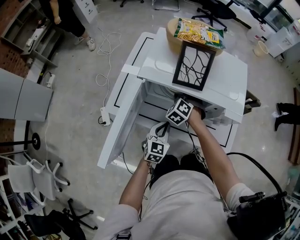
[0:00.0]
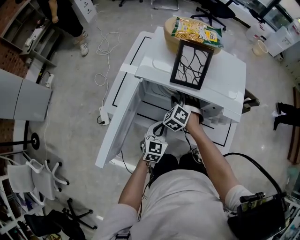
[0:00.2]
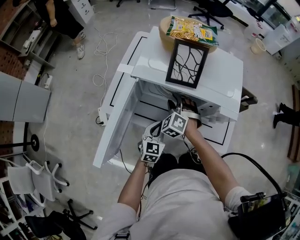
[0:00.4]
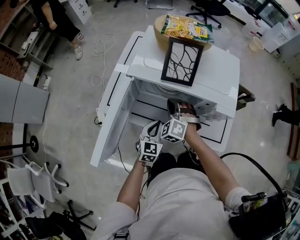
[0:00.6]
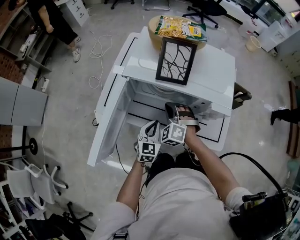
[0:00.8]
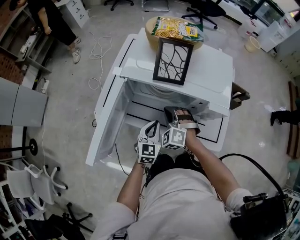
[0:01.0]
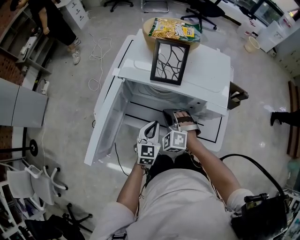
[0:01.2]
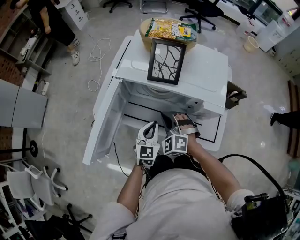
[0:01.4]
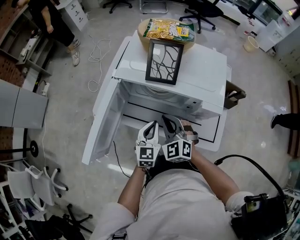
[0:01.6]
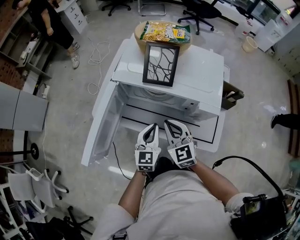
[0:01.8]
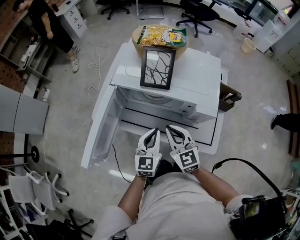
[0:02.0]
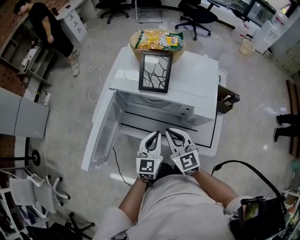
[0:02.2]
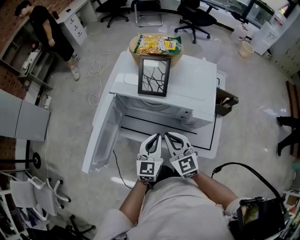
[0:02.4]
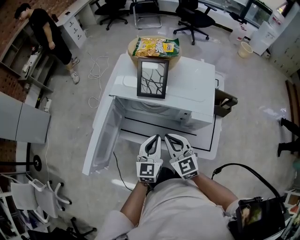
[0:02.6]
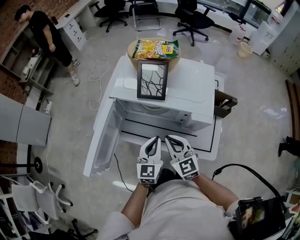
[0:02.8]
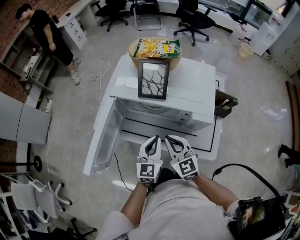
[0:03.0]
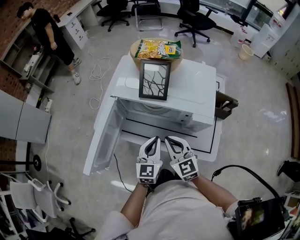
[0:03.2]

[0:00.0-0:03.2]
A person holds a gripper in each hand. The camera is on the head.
0:00.0 to 0:01.6: The left gripper moves upward, roughly 5 cm.
0:01.6 to 0:03.2: The left gripper travels upward by about 5 cm.

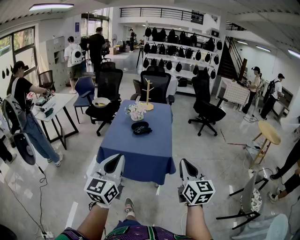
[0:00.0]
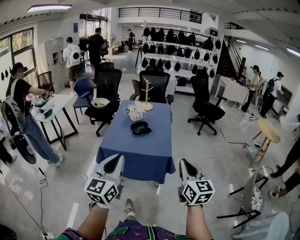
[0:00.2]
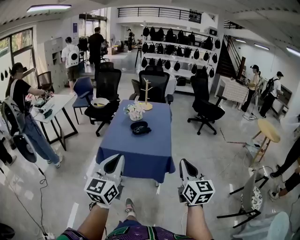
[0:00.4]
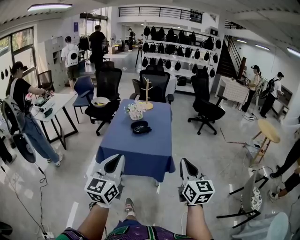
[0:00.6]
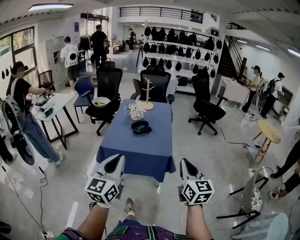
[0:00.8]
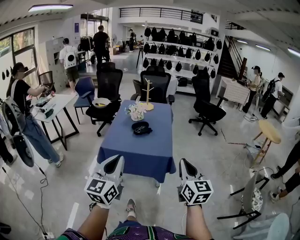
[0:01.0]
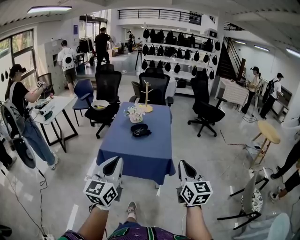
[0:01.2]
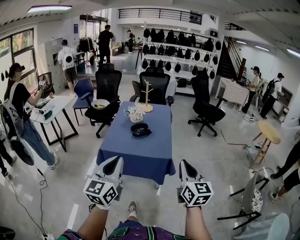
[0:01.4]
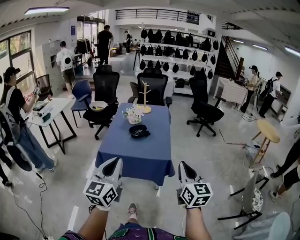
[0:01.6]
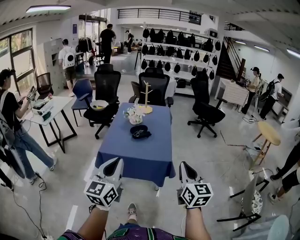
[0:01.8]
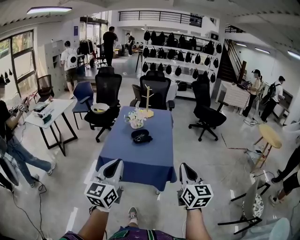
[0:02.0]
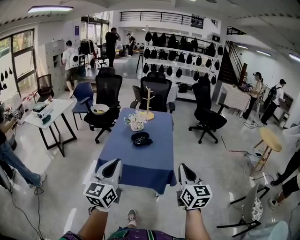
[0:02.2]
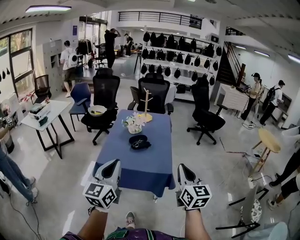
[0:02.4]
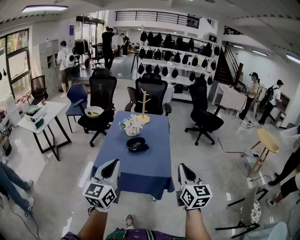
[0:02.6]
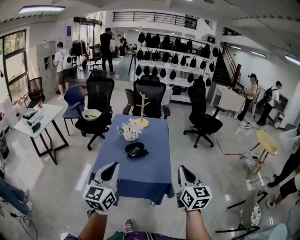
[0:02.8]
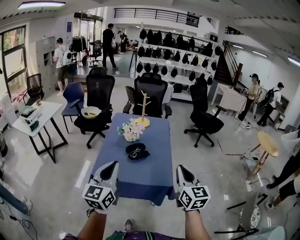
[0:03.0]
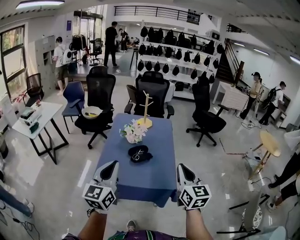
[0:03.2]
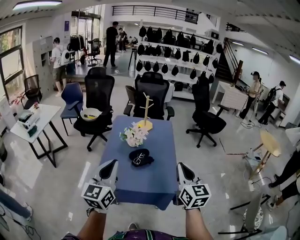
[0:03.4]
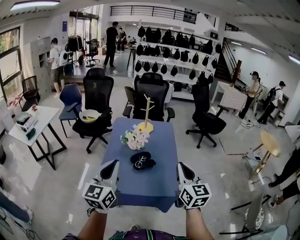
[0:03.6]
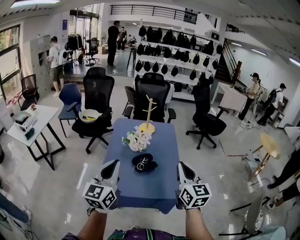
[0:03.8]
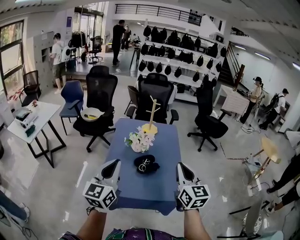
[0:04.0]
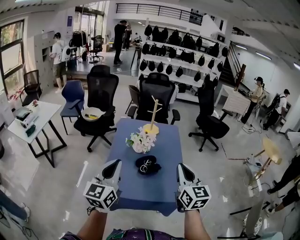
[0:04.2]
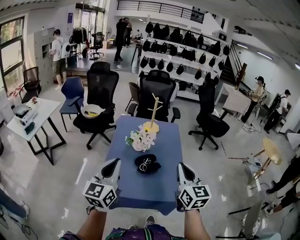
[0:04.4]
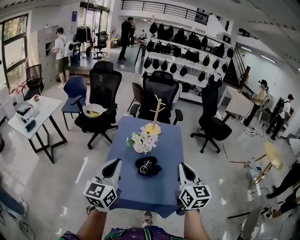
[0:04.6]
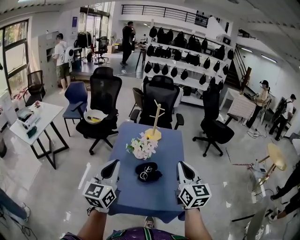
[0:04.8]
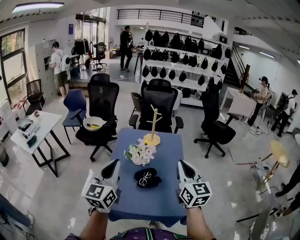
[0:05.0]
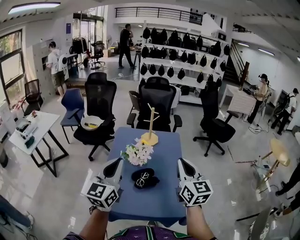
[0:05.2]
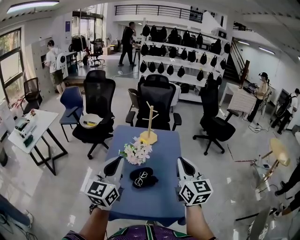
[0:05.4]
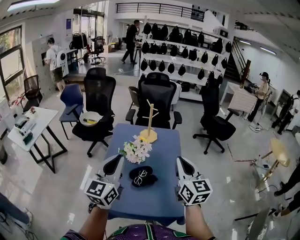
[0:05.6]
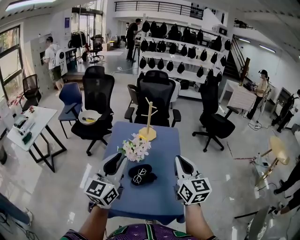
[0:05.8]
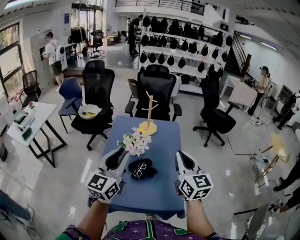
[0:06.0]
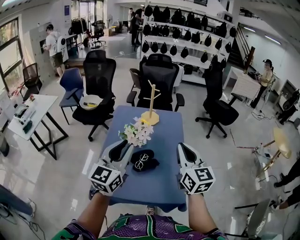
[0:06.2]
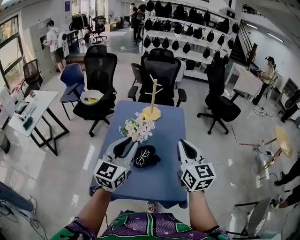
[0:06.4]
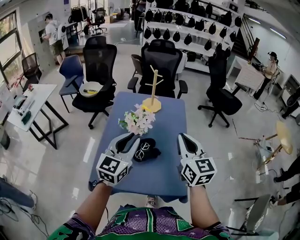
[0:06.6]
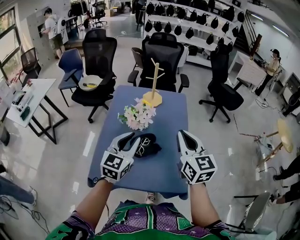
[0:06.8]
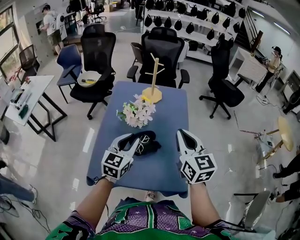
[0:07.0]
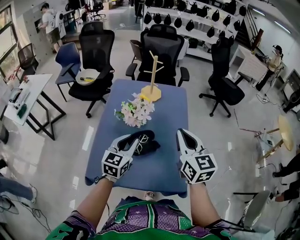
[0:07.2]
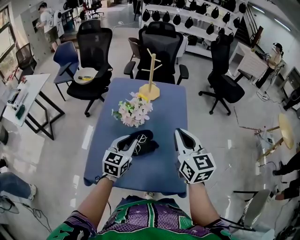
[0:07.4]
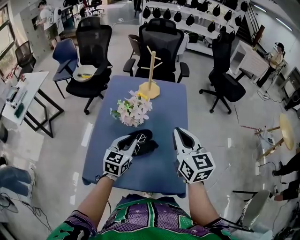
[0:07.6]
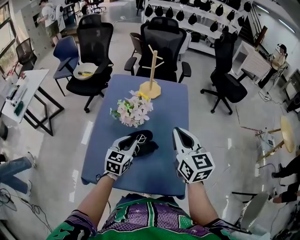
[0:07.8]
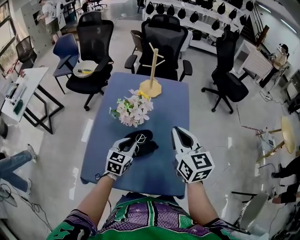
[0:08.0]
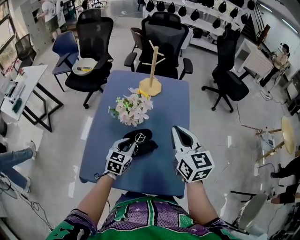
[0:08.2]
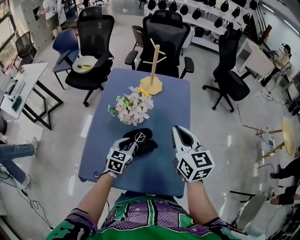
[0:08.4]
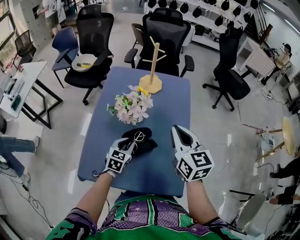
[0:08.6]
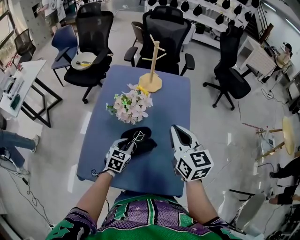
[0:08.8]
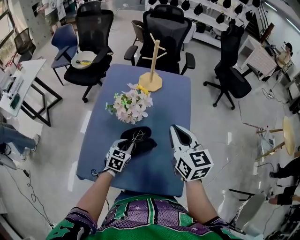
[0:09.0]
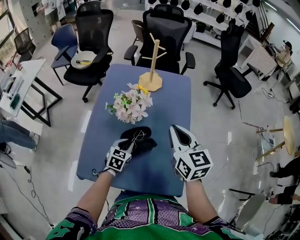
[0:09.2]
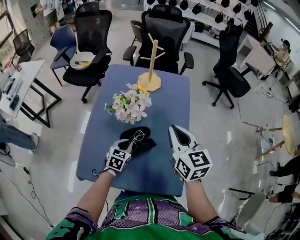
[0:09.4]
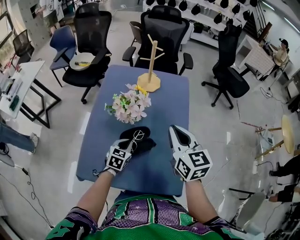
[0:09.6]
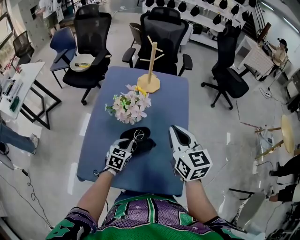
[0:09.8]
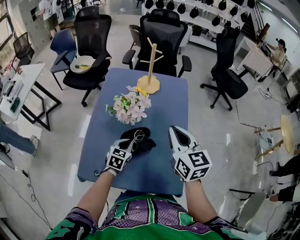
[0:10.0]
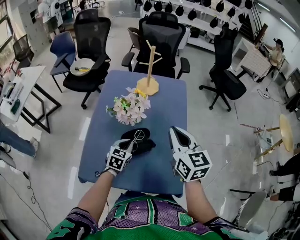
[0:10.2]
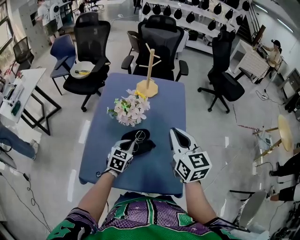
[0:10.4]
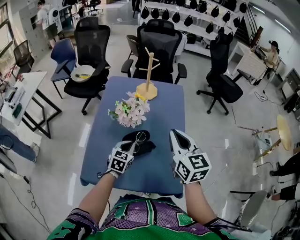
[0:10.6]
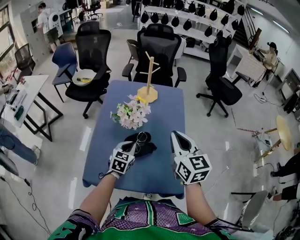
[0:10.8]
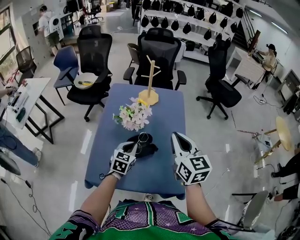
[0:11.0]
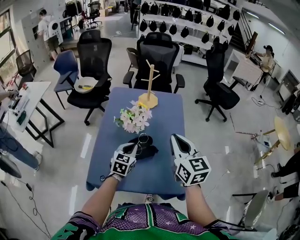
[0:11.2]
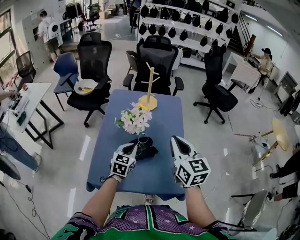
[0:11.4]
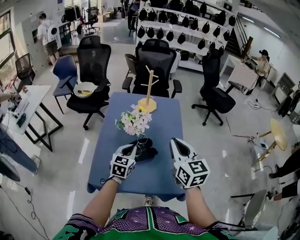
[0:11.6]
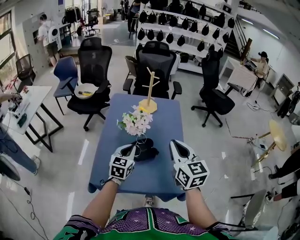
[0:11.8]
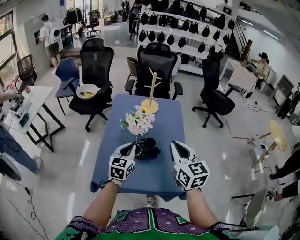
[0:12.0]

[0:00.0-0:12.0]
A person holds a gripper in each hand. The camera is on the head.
0:00.0 to 0:01.6: There are only small adjustments of the grippers.
0:01.6 to 0:03.0: The two grippers go approximately 20 cm forward.
0:03.0 to 0:04.4: The two grippers go about 20 cm forward and to the left.
0:04.4 to 0:06.0: The right gripper shifts approximately 10 cm forward, while the left gripper is displaced forward and to the right by roughly 15 cm.
0:06.0 to 0:07.6: The left gripper shifts some 25 cm downward, and swivels some 30 degrees. Meanwhile the right gripper heads downward and forward, covering some 10 cm.
0:07.6 to 0:09.0: The left gripper travels downward by some 15 cm. Meanwhile the right gripper shifts by roughly 5 cm.
0:09.0 to 0:10.4: The left gripper goes roughly 5 cm upward.
0:10.4 to 0:12.0: The left gripper goes roughly 15 cm upward and backward, while the right gripper heads backward and upward, covering roughly 10 cm.

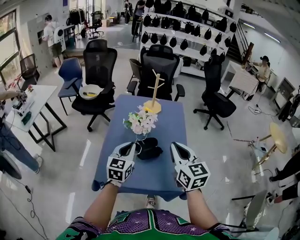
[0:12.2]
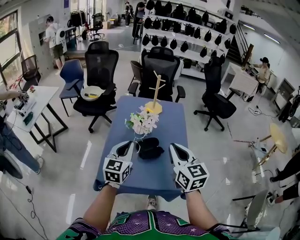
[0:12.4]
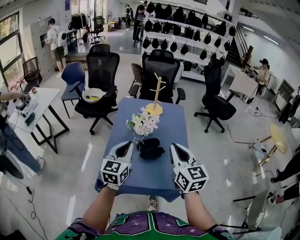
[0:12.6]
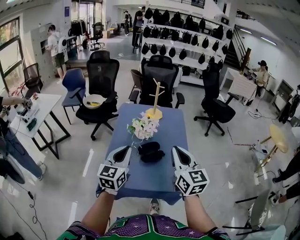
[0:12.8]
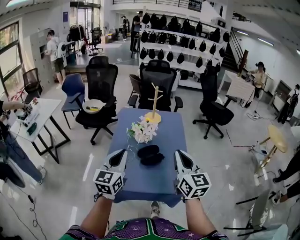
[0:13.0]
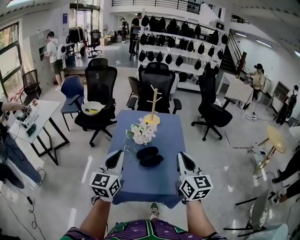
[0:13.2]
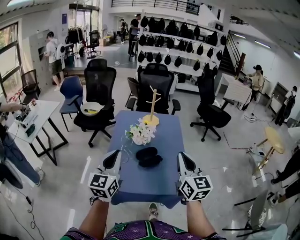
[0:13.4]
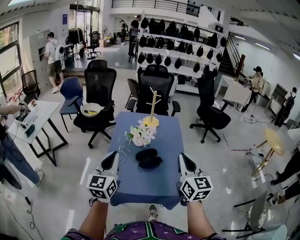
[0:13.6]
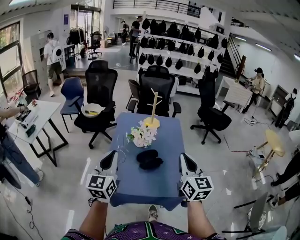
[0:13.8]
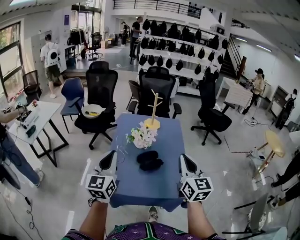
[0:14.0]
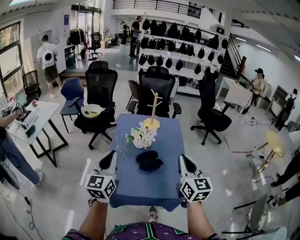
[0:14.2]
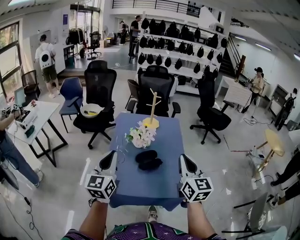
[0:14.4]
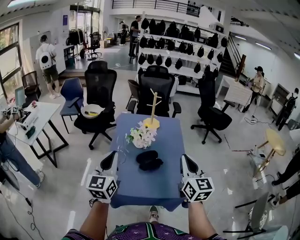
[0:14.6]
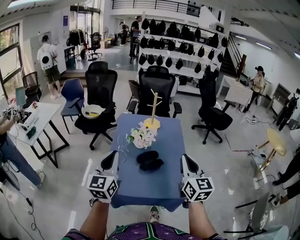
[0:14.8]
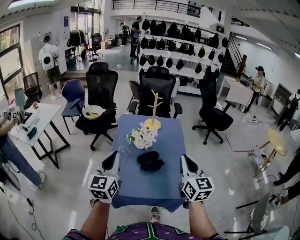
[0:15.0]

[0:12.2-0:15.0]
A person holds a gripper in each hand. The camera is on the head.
0:12.2 to 0:13.6: The right gripper moves backward, approximately 5 cm. The left gripper shifts some 20 cm upward, backward and to the left.
0:13.6 to 0:15.0: The grippers move only a little.

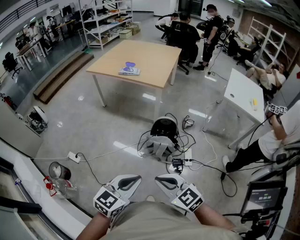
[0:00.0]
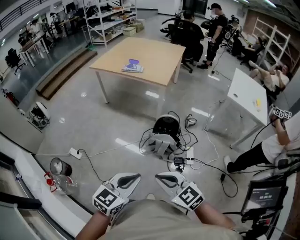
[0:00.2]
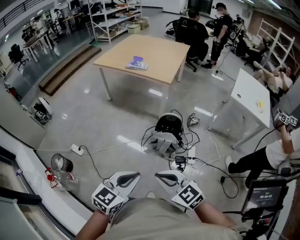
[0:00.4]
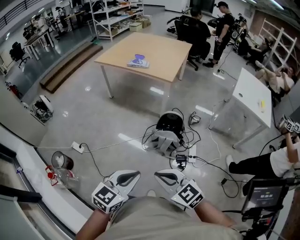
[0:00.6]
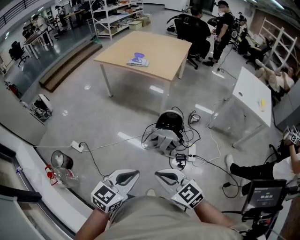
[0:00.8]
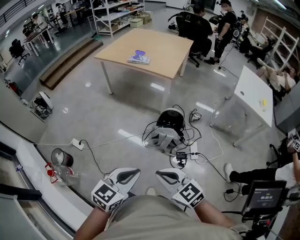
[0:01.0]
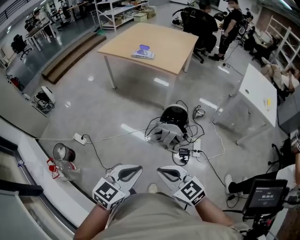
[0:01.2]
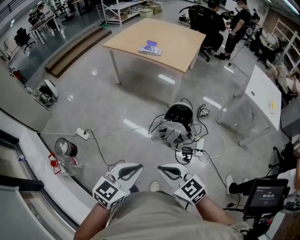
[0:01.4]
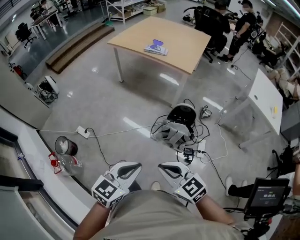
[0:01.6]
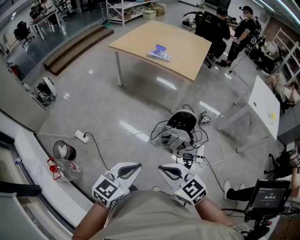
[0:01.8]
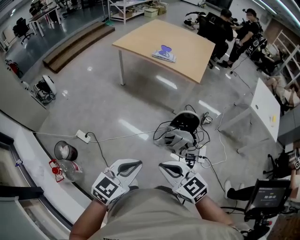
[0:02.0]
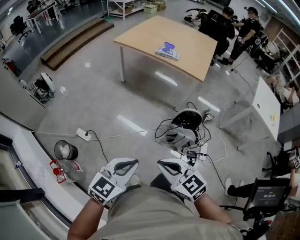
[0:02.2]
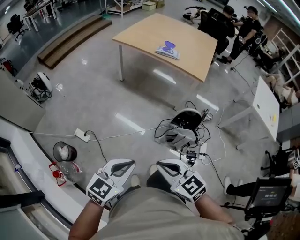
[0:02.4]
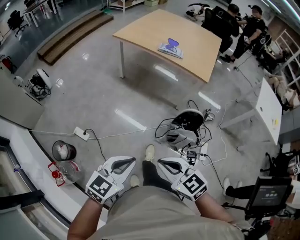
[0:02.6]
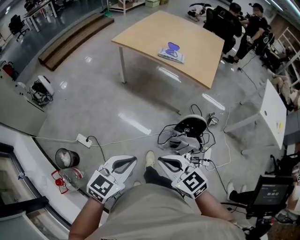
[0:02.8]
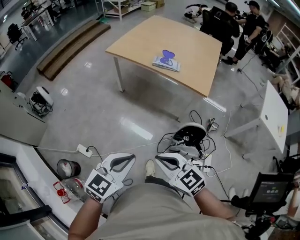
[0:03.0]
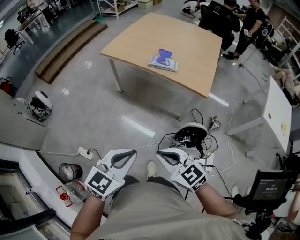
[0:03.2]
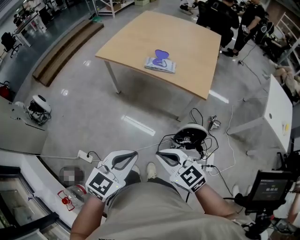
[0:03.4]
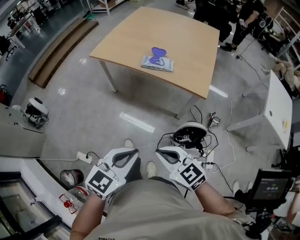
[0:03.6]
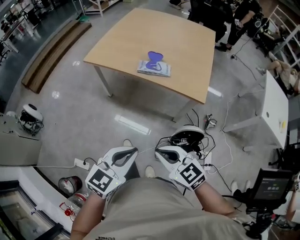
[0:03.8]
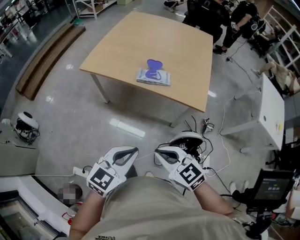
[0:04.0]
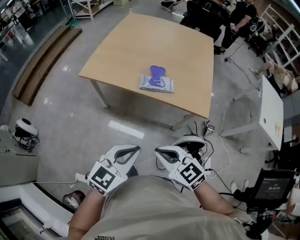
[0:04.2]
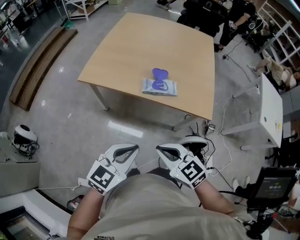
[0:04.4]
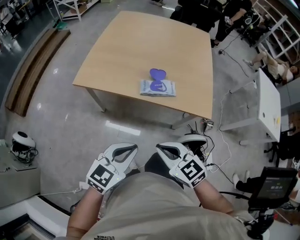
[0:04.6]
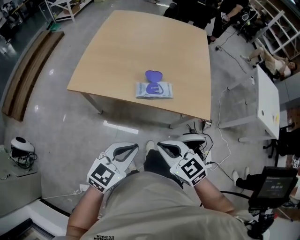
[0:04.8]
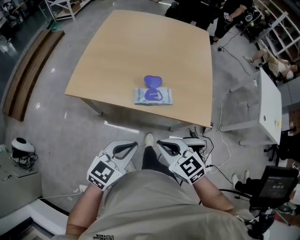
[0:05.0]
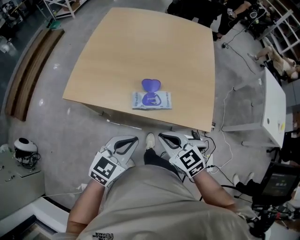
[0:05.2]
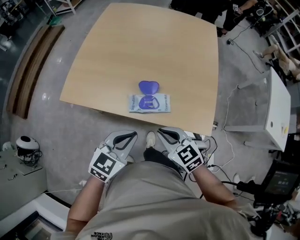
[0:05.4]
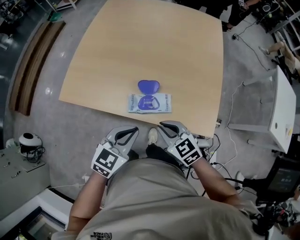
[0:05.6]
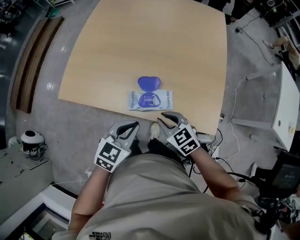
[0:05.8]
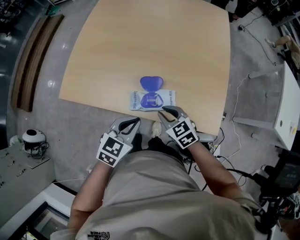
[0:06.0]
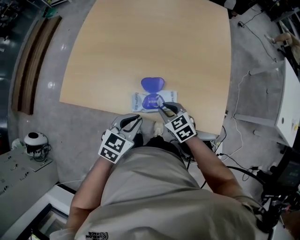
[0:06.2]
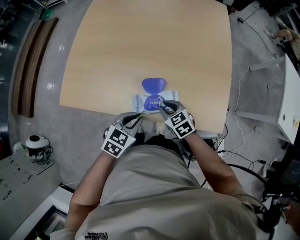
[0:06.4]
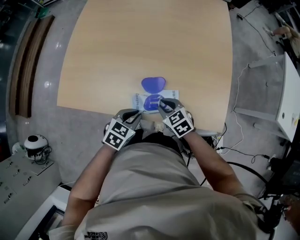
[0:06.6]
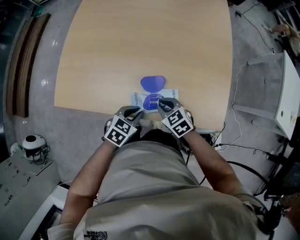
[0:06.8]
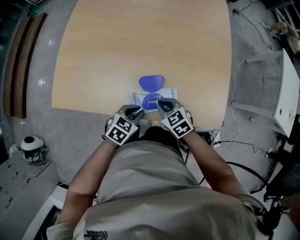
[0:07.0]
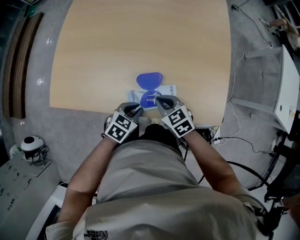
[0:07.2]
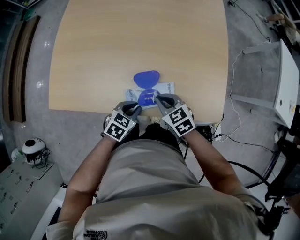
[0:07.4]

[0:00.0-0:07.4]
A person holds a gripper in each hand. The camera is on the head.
0:00.0 to 0:01.4: The two grippers go about 5 cm to the left.
0:01.4 to 0:03.0: The two grippers travel together, forward and to the left, some 40 cm.
0:03.0 to 0:04.4: The two grippers travel together, forward, some 40 cm.
0:04.4 to 0:06.0: The right gripper goes approximately 40 cm forward and downward; the left gripper heads forward, covering approximately 35 cm.
0:06.0 to 0:07.4: The left gripper goes roughly 15 cm downward. The right gripper heads forward, covering about 5 cm.
